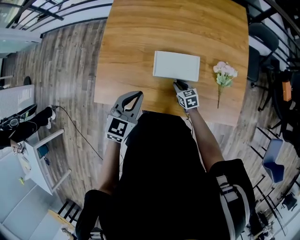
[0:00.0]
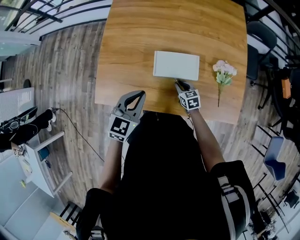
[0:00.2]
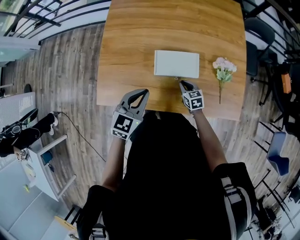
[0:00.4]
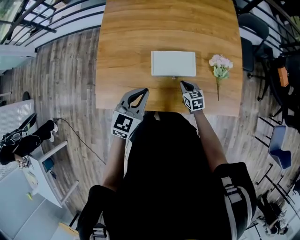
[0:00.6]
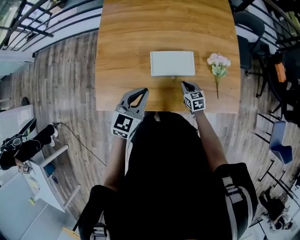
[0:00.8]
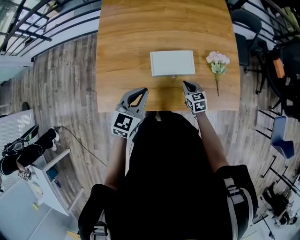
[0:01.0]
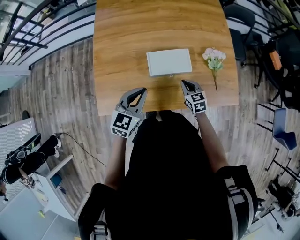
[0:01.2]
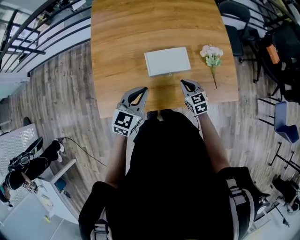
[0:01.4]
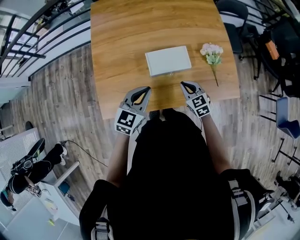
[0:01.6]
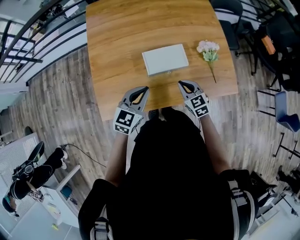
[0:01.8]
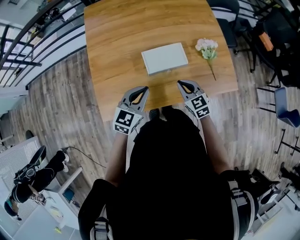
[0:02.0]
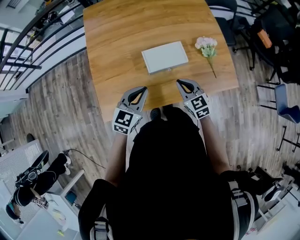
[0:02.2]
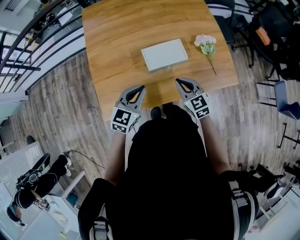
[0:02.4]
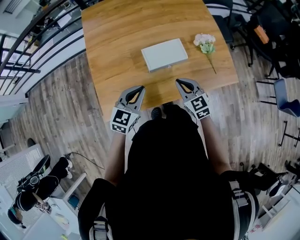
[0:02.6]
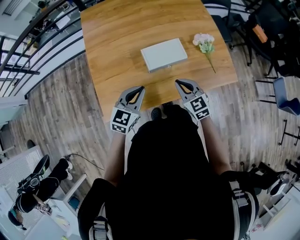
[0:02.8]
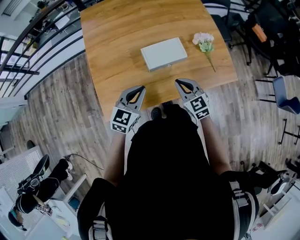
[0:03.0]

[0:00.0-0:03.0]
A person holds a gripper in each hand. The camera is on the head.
0:00.0 to 0:01.6: The right gripper shifts about 15 cm upward and backward.
0:01.6 to 0:03.0: The left gripper is displaced backward by some 5 cm. The right gripper shifts approximately 10 cm backward, upward and to the left.

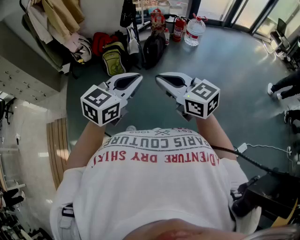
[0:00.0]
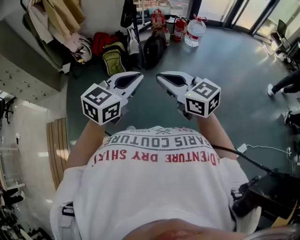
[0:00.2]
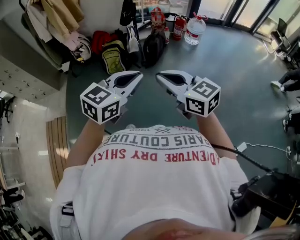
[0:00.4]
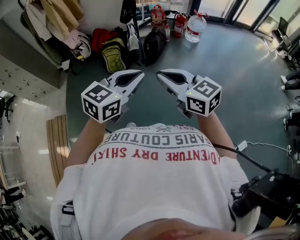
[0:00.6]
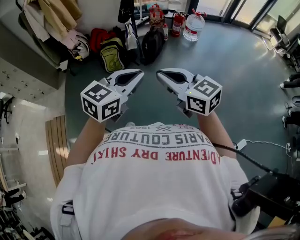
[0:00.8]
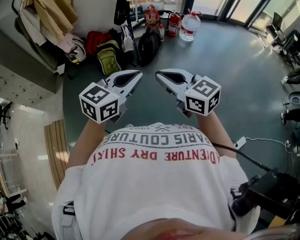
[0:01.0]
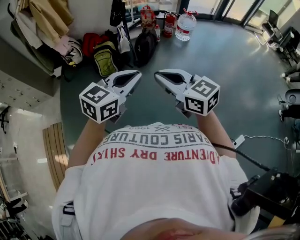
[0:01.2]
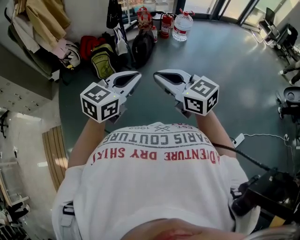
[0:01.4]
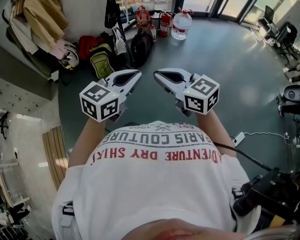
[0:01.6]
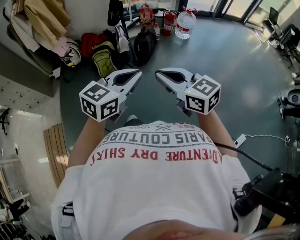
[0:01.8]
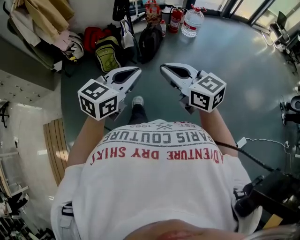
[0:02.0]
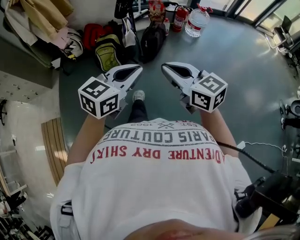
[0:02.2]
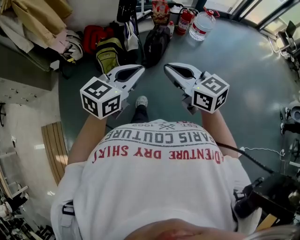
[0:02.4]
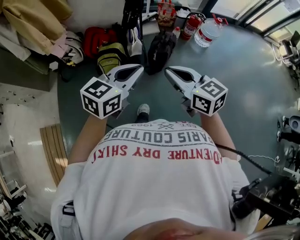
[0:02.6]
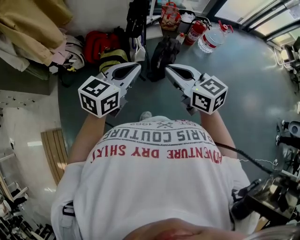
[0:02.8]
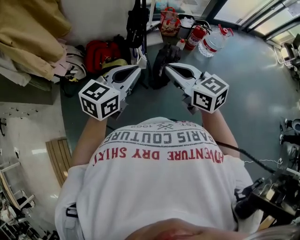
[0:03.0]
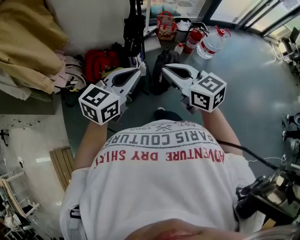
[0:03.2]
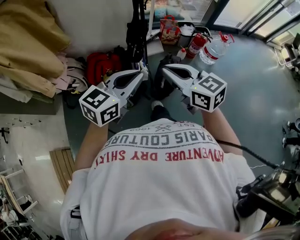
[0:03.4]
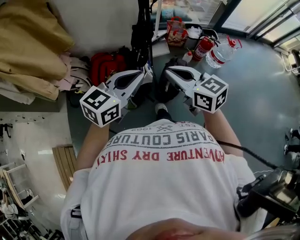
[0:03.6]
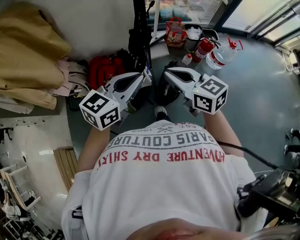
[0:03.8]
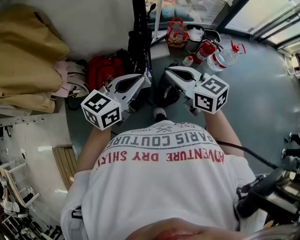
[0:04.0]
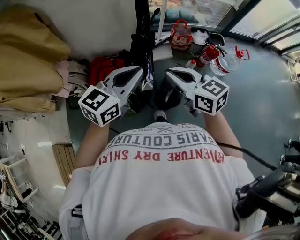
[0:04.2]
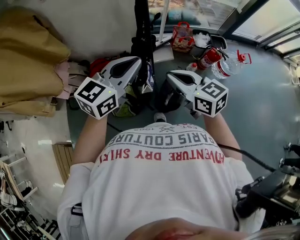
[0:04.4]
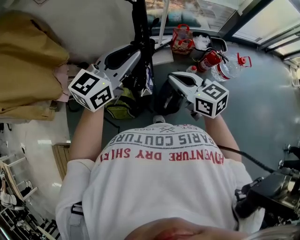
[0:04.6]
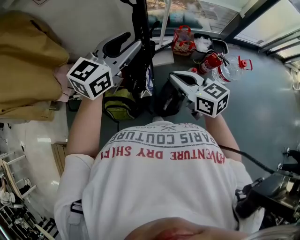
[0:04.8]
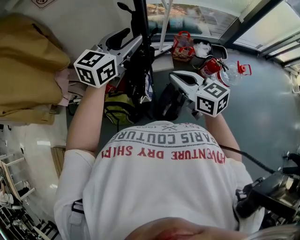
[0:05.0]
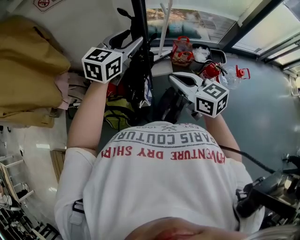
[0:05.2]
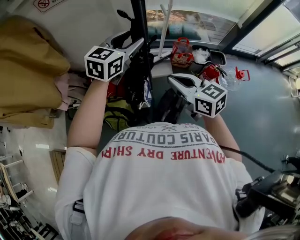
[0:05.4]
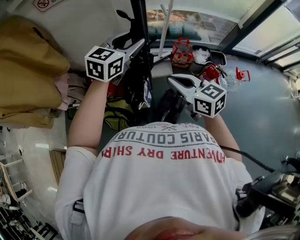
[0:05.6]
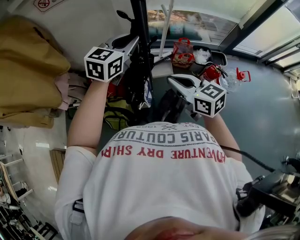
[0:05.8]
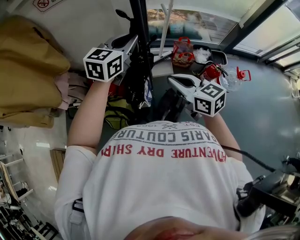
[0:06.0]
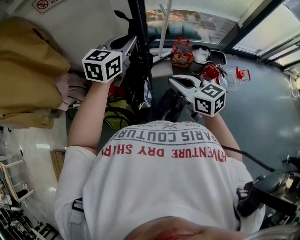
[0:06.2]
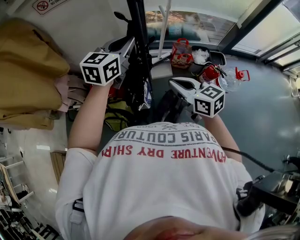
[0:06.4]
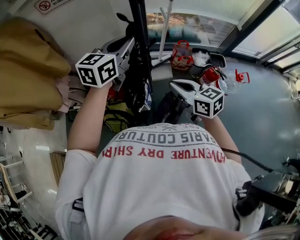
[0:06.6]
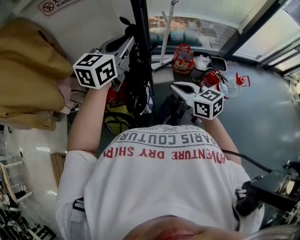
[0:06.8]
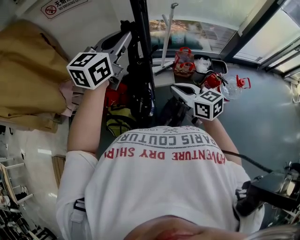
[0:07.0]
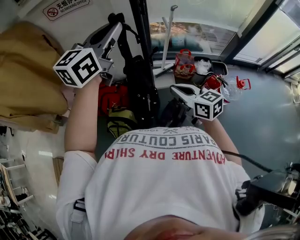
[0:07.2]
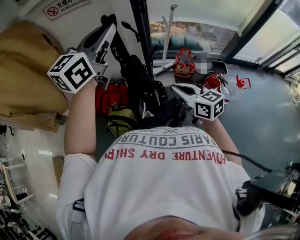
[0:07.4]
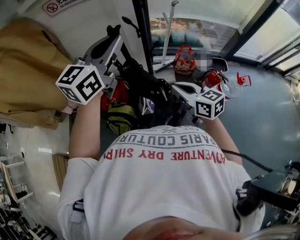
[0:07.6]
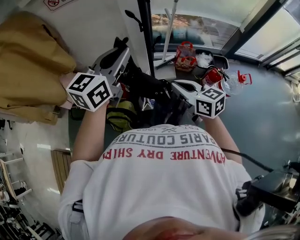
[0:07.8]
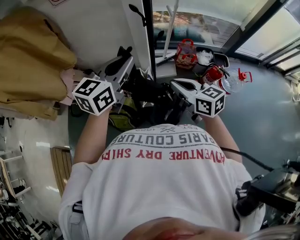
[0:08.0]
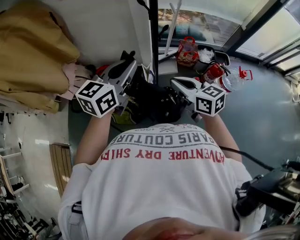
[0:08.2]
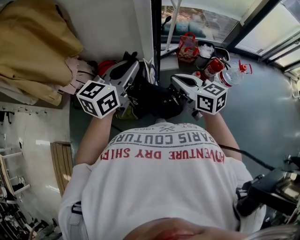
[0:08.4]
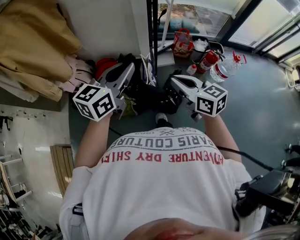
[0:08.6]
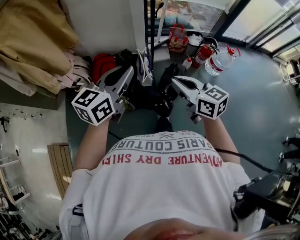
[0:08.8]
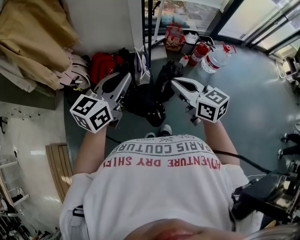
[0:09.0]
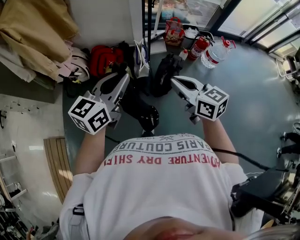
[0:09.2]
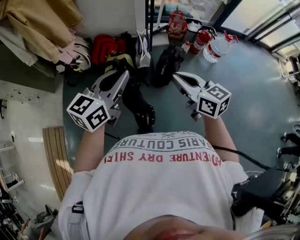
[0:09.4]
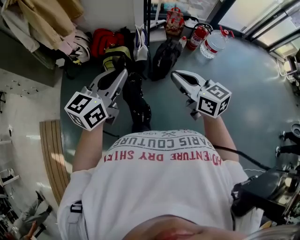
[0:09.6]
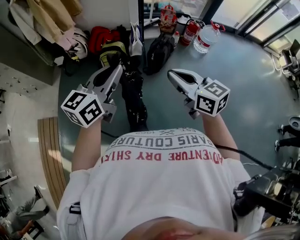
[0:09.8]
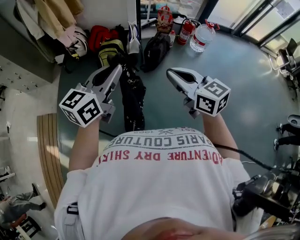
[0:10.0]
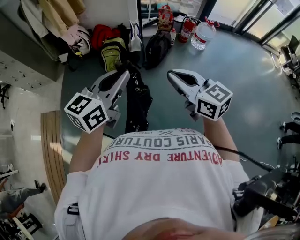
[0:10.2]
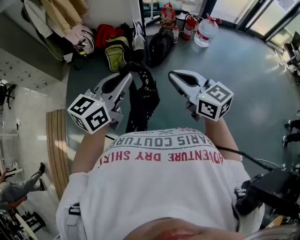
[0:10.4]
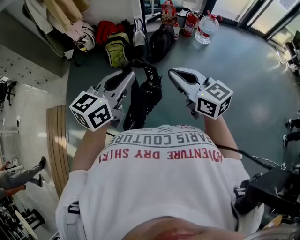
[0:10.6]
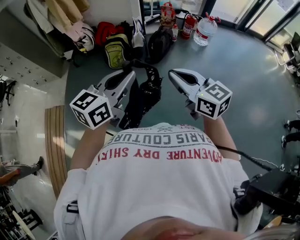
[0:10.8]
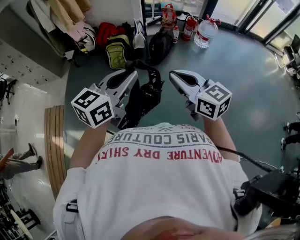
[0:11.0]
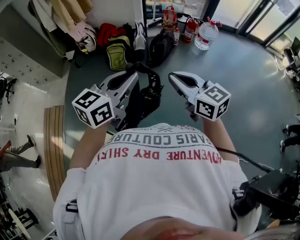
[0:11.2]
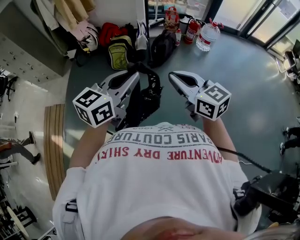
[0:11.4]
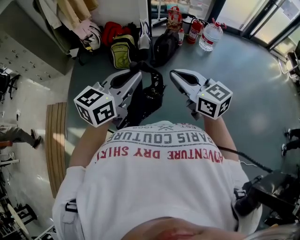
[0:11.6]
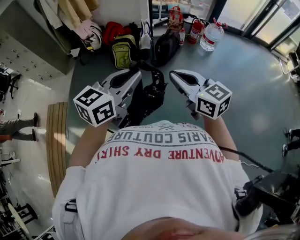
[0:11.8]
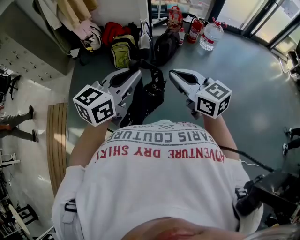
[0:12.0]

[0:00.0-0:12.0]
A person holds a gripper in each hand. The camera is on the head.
0:00.0 to 0:01.6: The grippers make only small movements.
0:01.6 to 0:03.0: The pair of grippers is taken forward, some 60 cm.
0:03.0 to 0:04.4: The grippers both shift forward by about 30 cm.
0:04.4 to 0:06.0: The right gripper is displaced forward by about 10 cm. Meanwhile the left gripper shifts roughly 20 cm forward, and opens and closes again.
0:06.0 to 0:07.6: The left gripper is displaced upward and backward by roughly 15 cm.
0:07.6 to 0:09.0: The two grippers go approximately 35 cm backward.
0:09.0 to 0:10.4: The pair of grippers is taken backward, approximately 60 cm.
0:10.4 to 0:12.0: The grippers stay close to where they were, moving slightly.

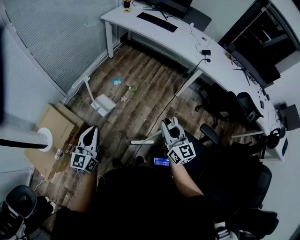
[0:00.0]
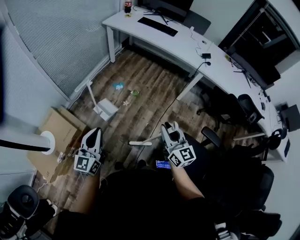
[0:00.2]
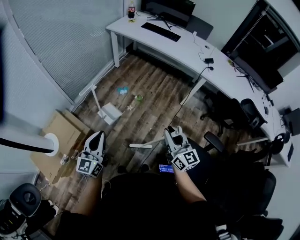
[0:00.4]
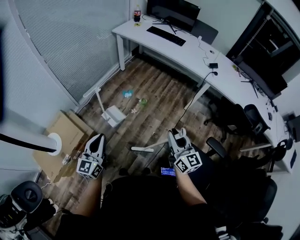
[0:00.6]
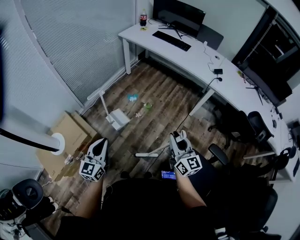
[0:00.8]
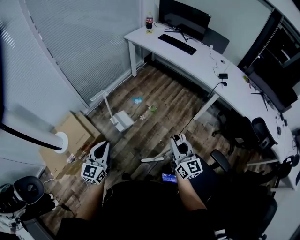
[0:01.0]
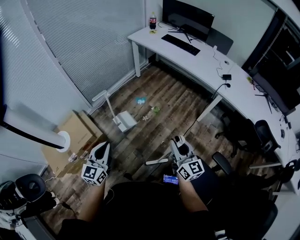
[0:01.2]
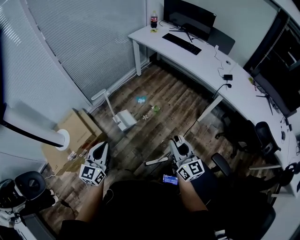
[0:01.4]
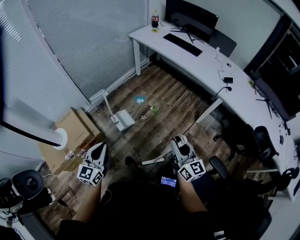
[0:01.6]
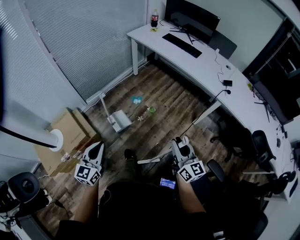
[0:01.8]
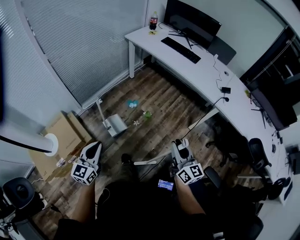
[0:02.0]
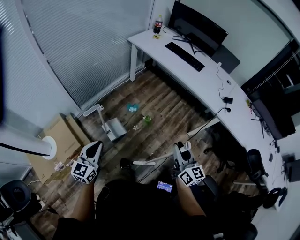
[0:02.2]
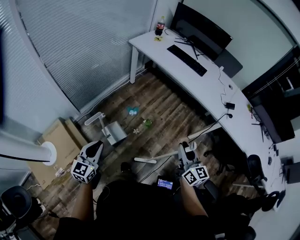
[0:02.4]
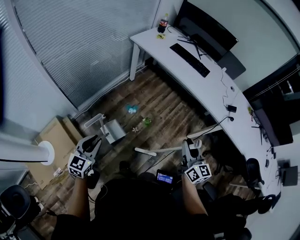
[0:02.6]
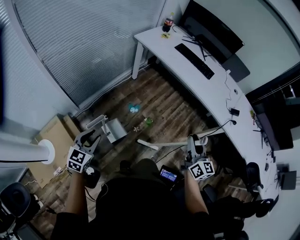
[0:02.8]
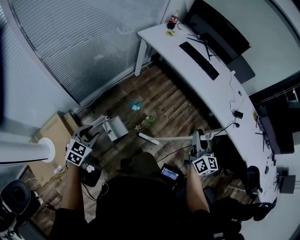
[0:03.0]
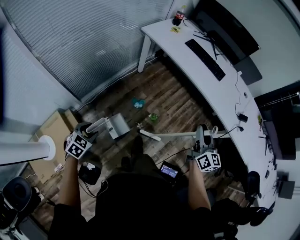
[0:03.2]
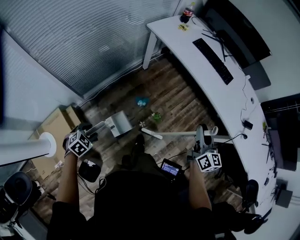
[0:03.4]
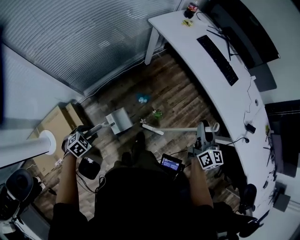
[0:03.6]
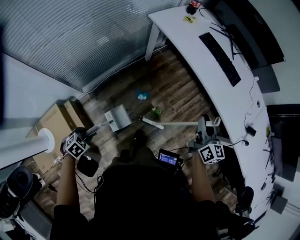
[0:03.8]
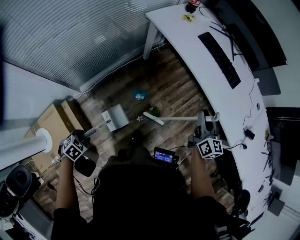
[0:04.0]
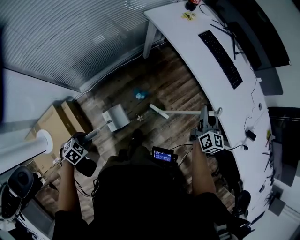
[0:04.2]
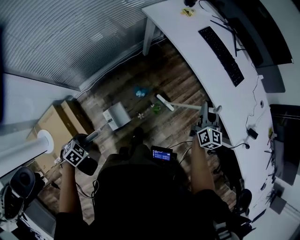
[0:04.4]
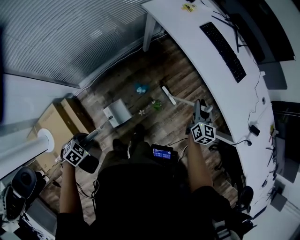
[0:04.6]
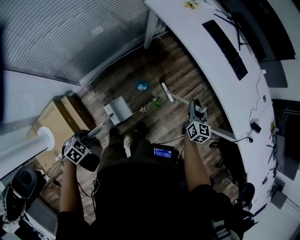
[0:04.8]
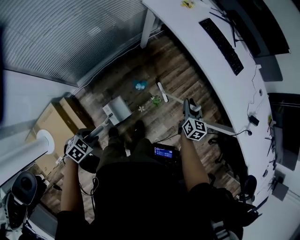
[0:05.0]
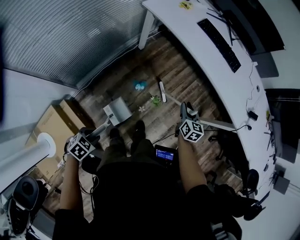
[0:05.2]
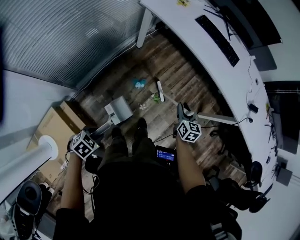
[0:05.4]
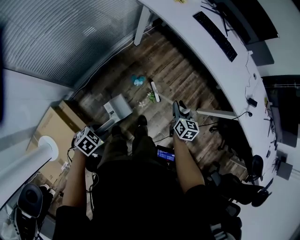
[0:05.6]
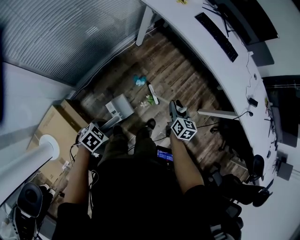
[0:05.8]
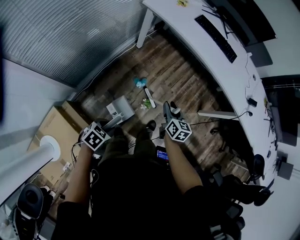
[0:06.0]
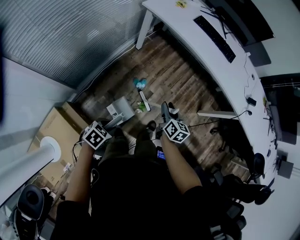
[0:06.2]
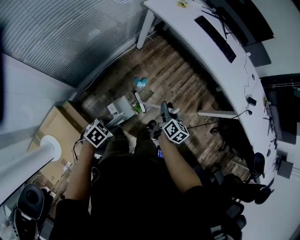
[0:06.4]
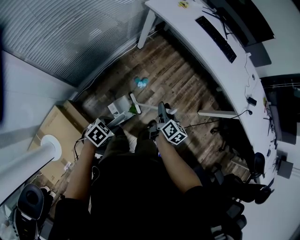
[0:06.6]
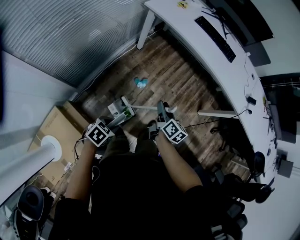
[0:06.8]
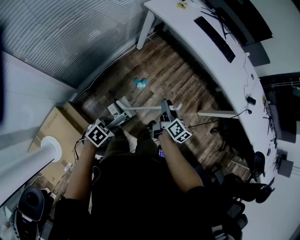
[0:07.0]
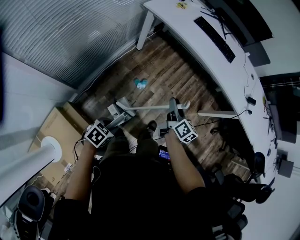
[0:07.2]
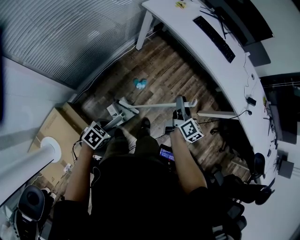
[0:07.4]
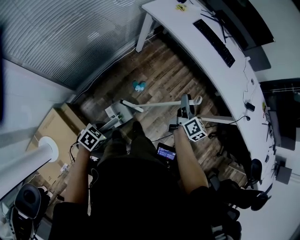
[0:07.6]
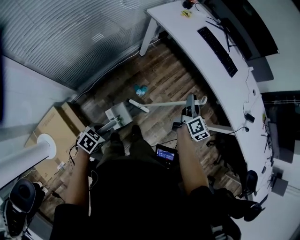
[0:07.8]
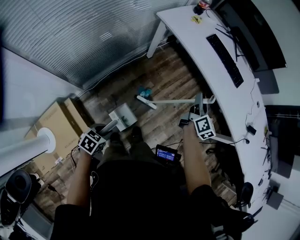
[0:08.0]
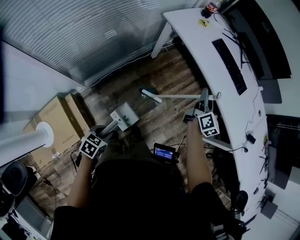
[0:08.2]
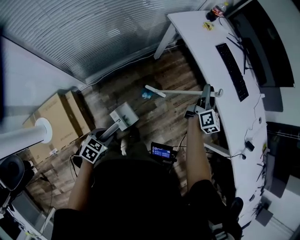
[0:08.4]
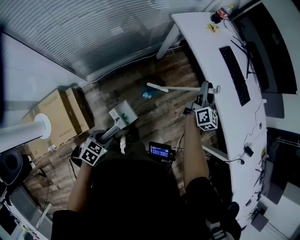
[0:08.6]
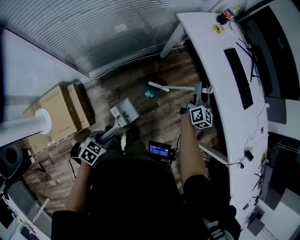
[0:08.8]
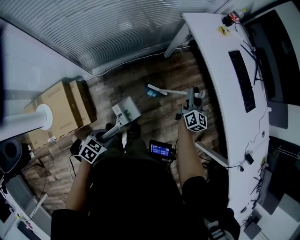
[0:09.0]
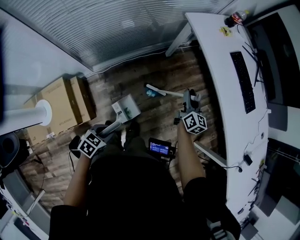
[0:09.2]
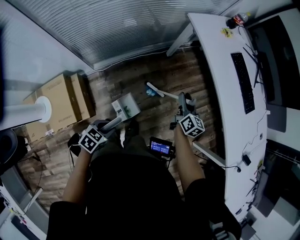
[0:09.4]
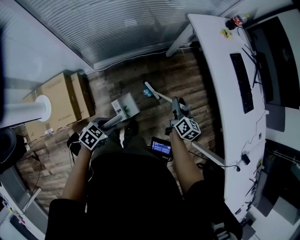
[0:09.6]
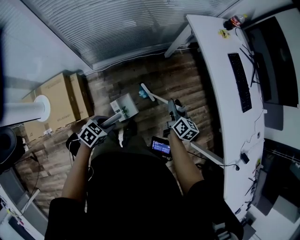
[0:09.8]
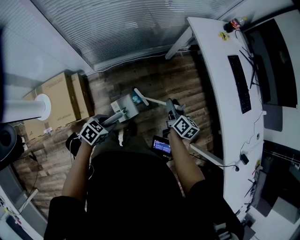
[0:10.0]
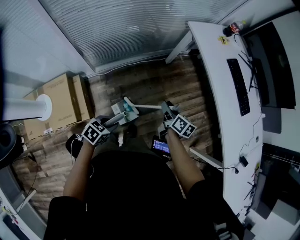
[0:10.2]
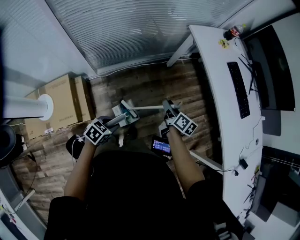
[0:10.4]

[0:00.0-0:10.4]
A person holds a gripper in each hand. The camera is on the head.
0:00.0 to 0:01.4: The left gripper ends up some 5 cm from where it was, while the right gripper changes place by some 5 cm.
0:01.4 to 0:03.0: The left gripper goes roughly 35 cm forward and to the left, tips its fingers downward by some 30 degrees, and opens; the right gripper goes approximately 35 cm forward.
0:03.0 to 0:04.4: The left gripper shifts roughly 15 cm downward, and tips its fingers downward by about 30 degrees; the right gripper shifts by about 35 cm.
0:04.4 to 0:06.0: The right gripper shifts about 30 cm backward, to the left and downward, and swivels approximately 20 degrees.
0:06.0 to 0:07.4: The right gripper moves upward, some 10 cm, and rotates roughly 30 degrees.
0:07.4 to 0:09.0: The right gripper travels forward by roughly 20 cm, and turns by about 30 degrees. Meanwhile the left gripper heads to the right, covering about 5 cm, and turns by roughly 30 degrees.
0:09.0 to 0:10.4: The right gripper heads backward and to the left, covering approximately 15 cm, and swivels about 40 degrees.
